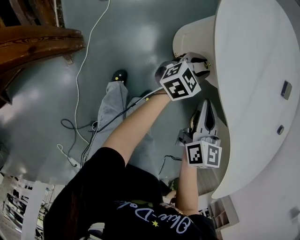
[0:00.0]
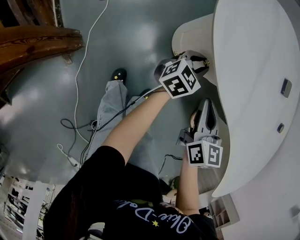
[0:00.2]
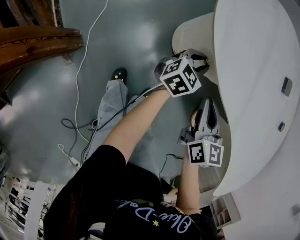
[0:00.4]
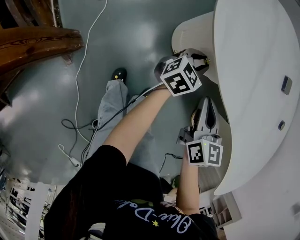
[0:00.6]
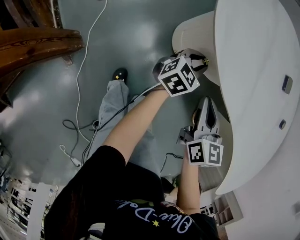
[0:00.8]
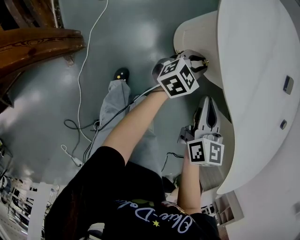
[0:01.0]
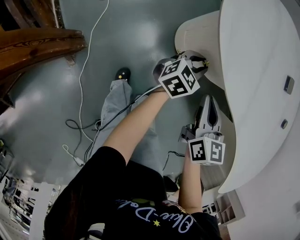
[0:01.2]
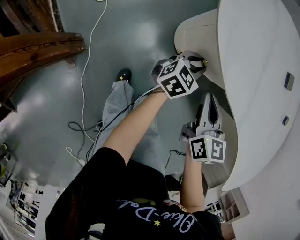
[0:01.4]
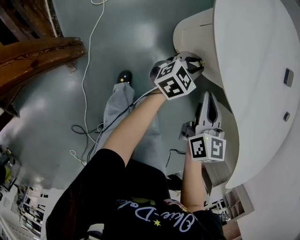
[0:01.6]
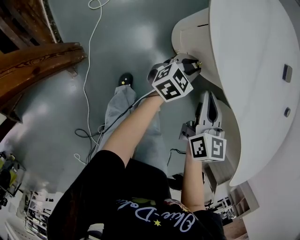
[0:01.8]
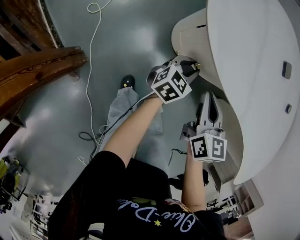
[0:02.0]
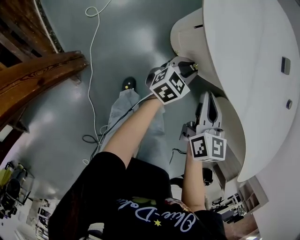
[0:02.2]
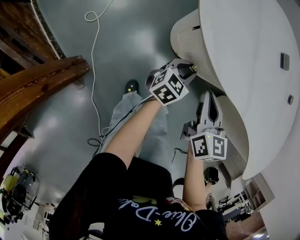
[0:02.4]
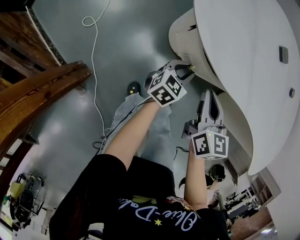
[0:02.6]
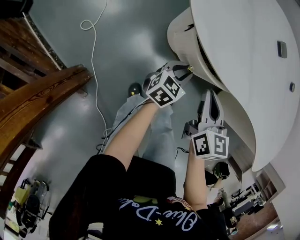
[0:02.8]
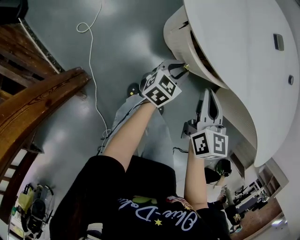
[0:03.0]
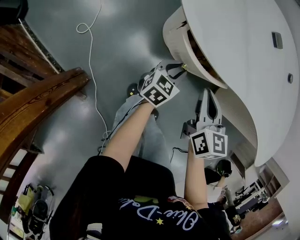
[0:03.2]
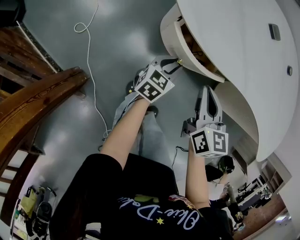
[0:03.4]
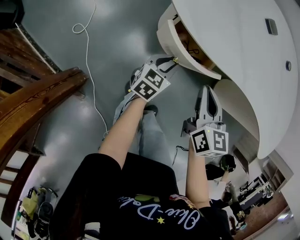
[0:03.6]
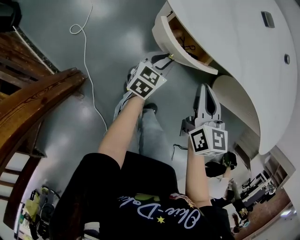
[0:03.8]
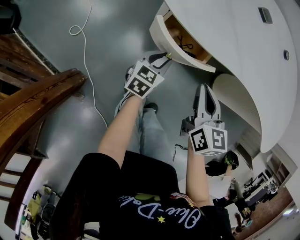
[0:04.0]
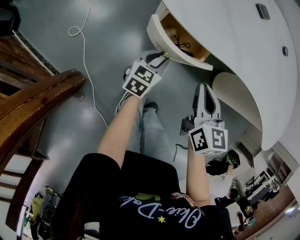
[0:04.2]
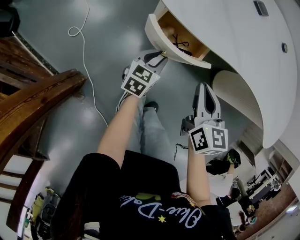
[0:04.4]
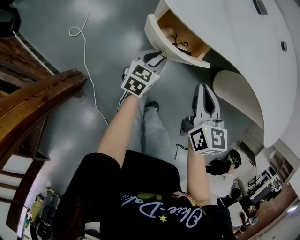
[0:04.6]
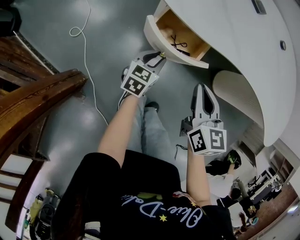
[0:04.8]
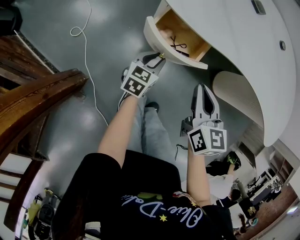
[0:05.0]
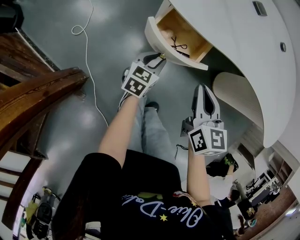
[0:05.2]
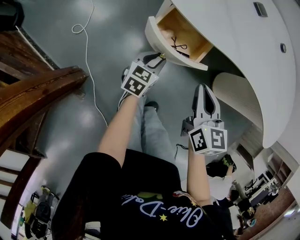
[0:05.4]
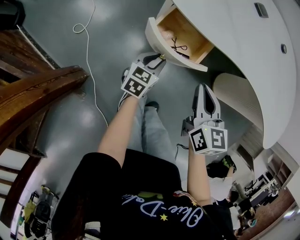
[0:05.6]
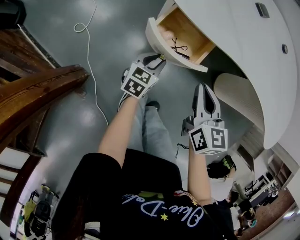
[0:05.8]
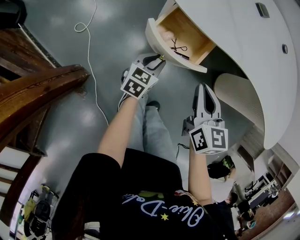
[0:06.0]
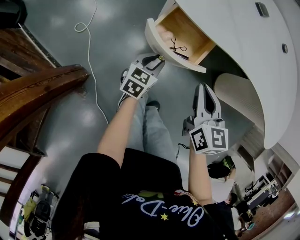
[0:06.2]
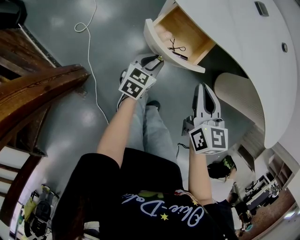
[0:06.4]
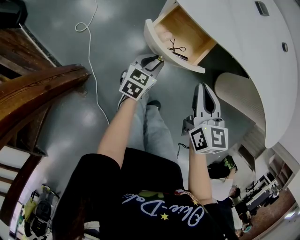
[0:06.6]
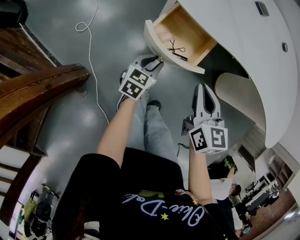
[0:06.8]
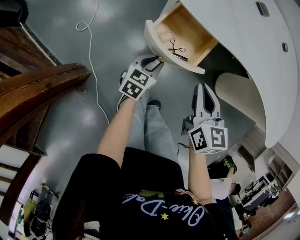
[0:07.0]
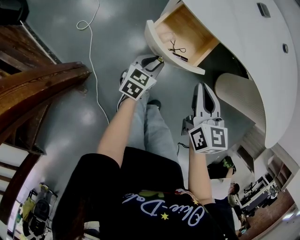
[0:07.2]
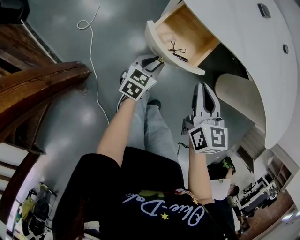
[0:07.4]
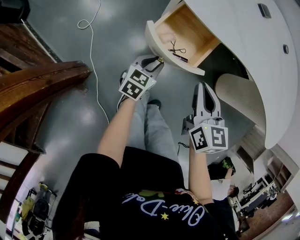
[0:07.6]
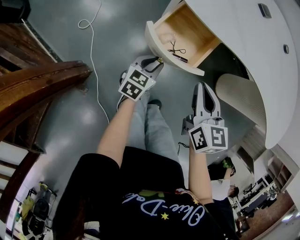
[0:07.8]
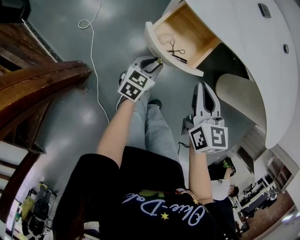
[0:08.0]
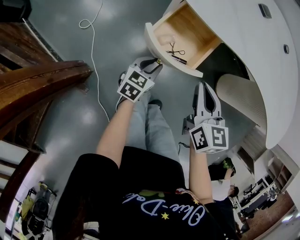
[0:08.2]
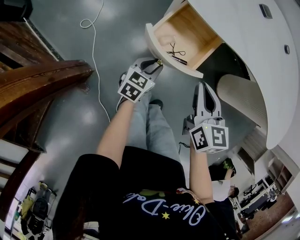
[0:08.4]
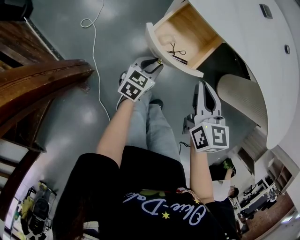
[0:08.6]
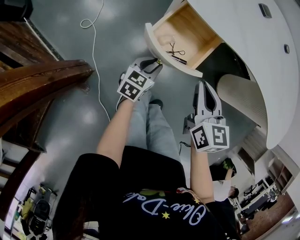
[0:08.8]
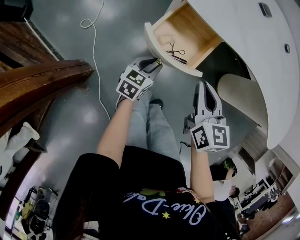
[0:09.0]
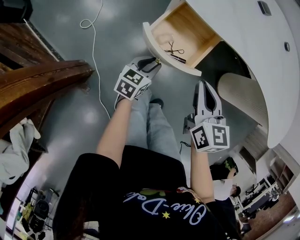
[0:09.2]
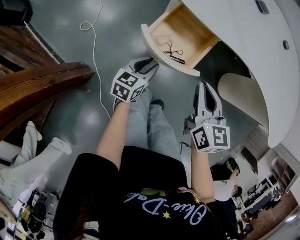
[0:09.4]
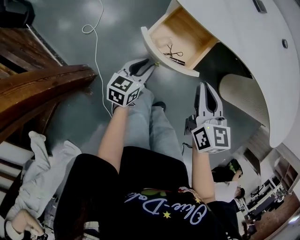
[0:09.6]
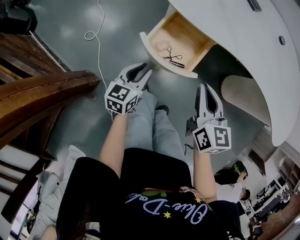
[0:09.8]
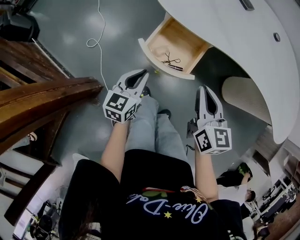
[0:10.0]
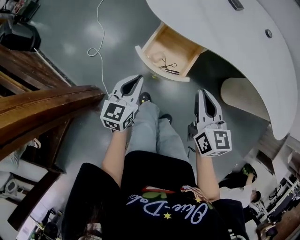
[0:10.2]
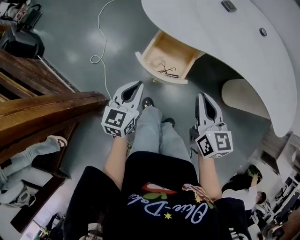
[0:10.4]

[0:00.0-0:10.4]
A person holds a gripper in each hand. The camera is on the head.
0:00.0 to 0:01.4: The grippers stay close to where they were, moving slightly.
0:01.4 to 0:03.0: The left gripper travels backward by about 5 cm.
0:03.0 to 0:04.4: The right gripper moves to the right, about 5 cm.
0:04.4 to 0:06.0: The grippers move only a little.
0:06.0 to 0:09.0: The grippers move only a little.
0:09.0 to 0:10.4: The left gripper moves upward, about 20 cm, and closes its fingers, while the right gripper heads upward, covering roughly 10 cm.

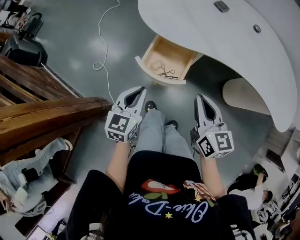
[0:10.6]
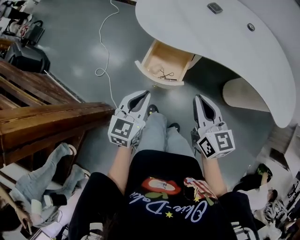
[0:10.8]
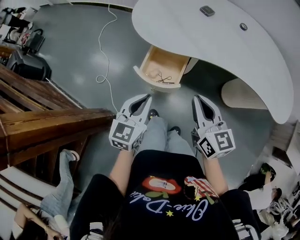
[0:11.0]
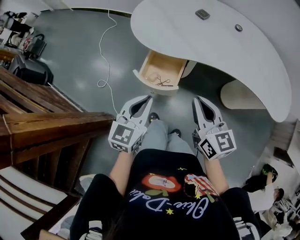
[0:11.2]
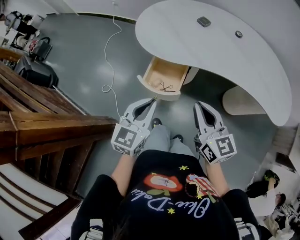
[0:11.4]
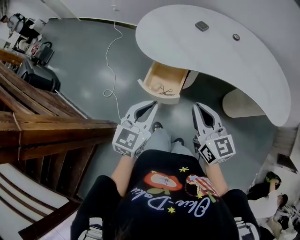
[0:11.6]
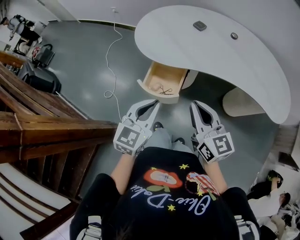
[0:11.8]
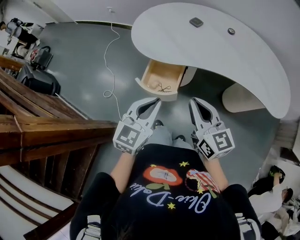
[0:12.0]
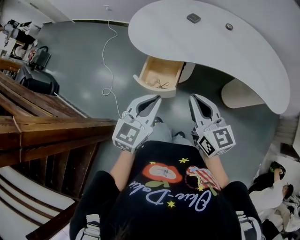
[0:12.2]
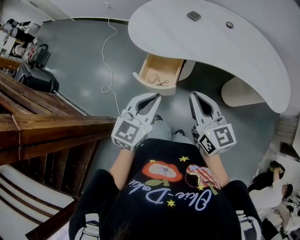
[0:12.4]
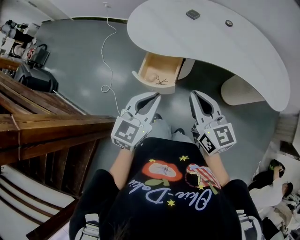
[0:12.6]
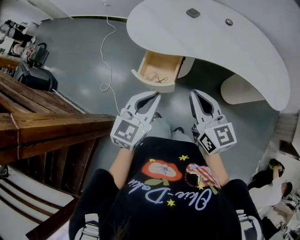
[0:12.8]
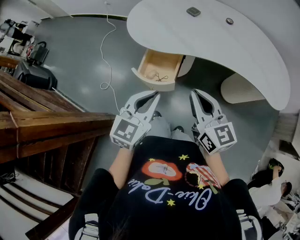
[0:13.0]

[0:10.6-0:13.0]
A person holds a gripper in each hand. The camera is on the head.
0:10.6 to 0:11.8: The left gripper goes approximately 15 cm upward and to the right; the right gripper is displaced upward by some 10 cm.
0:11.8 to 0:13.0: The grippers move only a little.

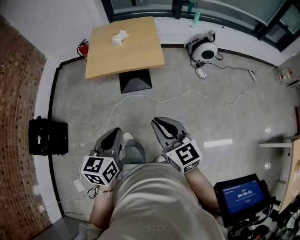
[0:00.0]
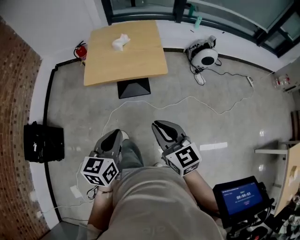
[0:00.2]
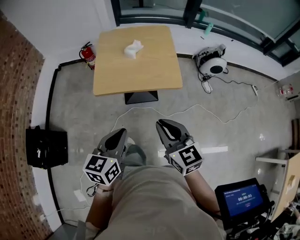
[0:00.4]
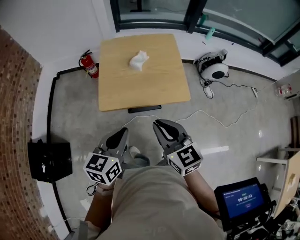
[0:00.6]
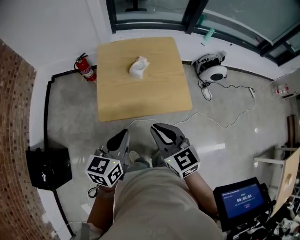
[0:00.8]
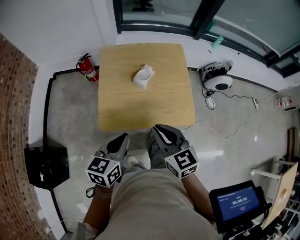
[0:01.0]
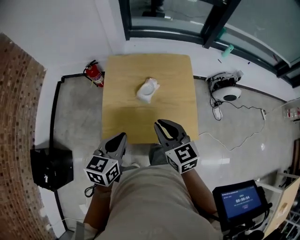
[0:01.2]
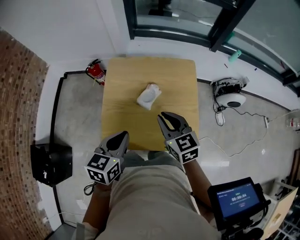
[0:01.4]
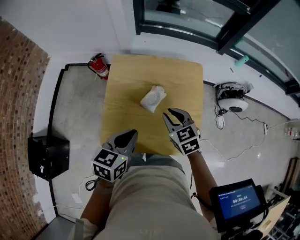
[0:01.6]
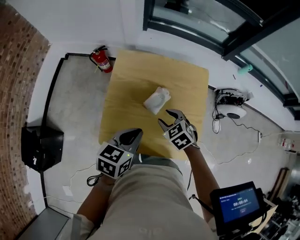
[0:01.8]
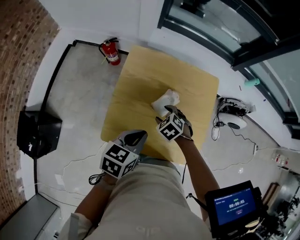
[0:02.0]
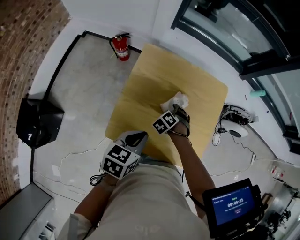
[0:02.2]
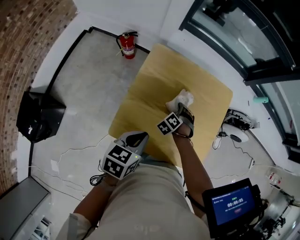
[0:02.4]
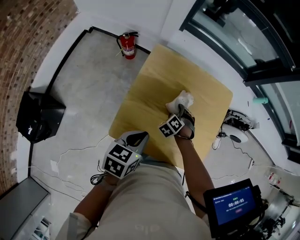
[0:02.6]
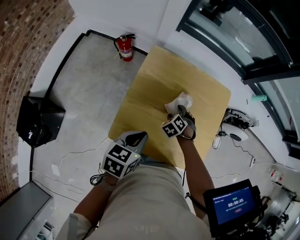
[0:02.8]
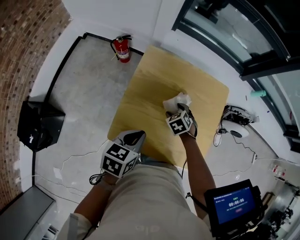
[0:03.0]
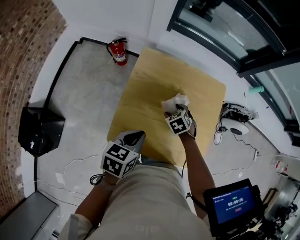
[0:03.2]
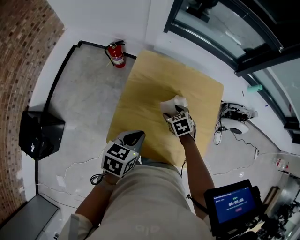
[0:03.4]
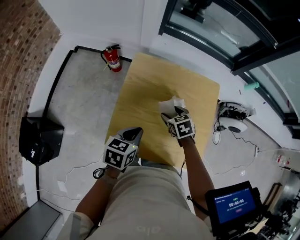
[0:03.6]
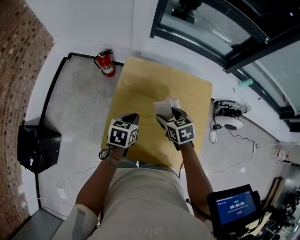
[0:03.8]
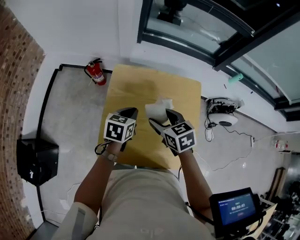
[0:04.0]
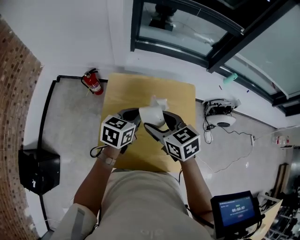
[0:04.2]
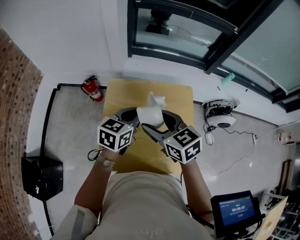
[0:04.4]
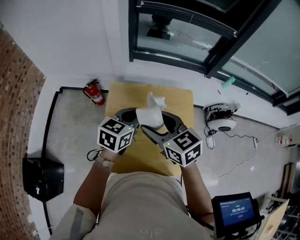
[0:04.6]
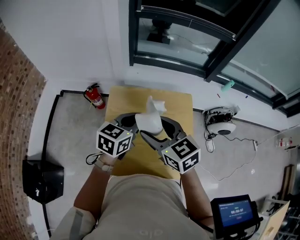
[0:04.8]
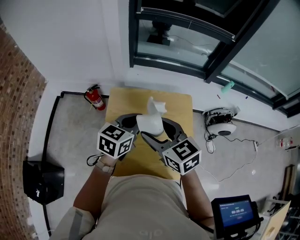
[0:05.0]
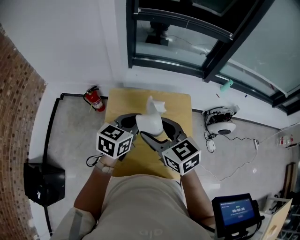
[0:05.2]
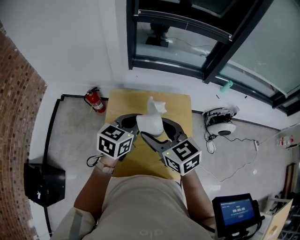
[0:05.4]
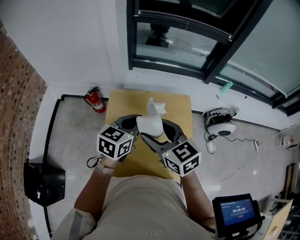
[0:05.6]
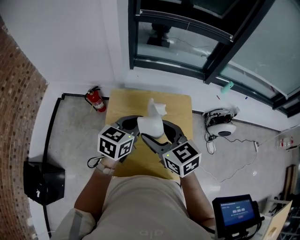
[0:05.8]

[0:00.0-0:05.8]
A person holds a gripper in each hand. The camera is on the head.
0:00.0 to 0:01.4: The two grippers travel together, forward, approximately 60 cm.
0:01.4 to 0:02.8: The left gripper changes place by some 10 cm. The right gripper is displaced downward by some 25 cm, tilts its fingers roughly 40 degrees downward, and opens up.
0:02.8 to 0:04.4: The right gripper shifts about 35 cm upward, and angles its fingers upward, by some 40 degrees; the left gripper shifts roughly 20 cm forward, to the right and upward, and changes its angle by some 30 degrees.
0:04.4 to 0:05.8: The right gripper ends up some 5 cm from where it was. Meanwhile the left gripper moves roughly 5 cm.

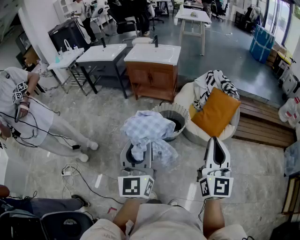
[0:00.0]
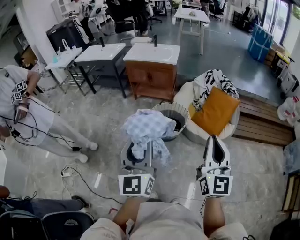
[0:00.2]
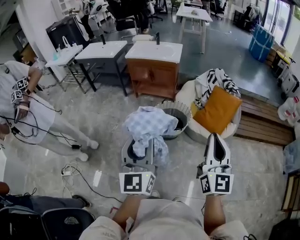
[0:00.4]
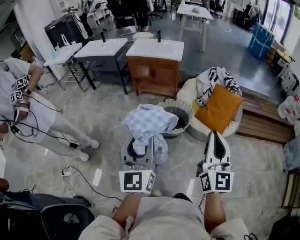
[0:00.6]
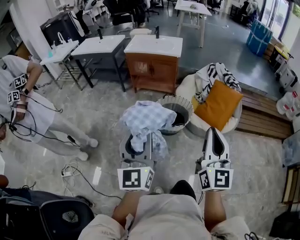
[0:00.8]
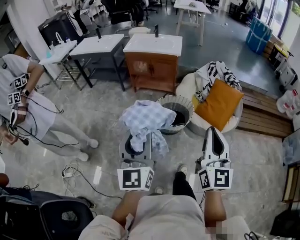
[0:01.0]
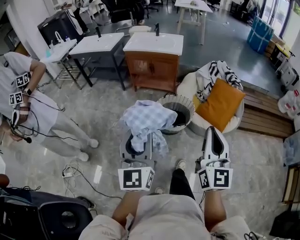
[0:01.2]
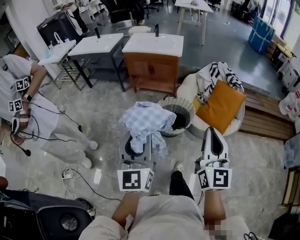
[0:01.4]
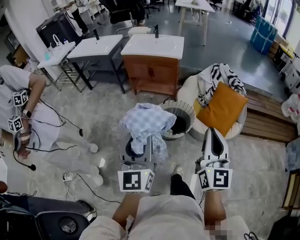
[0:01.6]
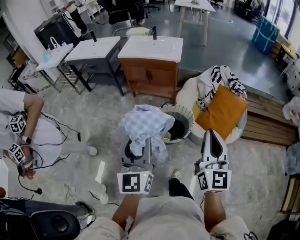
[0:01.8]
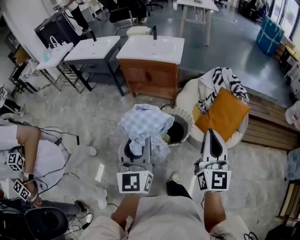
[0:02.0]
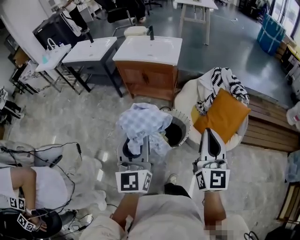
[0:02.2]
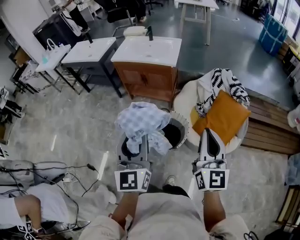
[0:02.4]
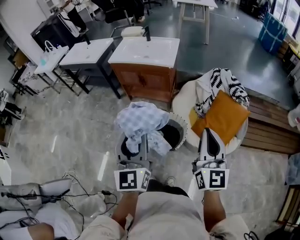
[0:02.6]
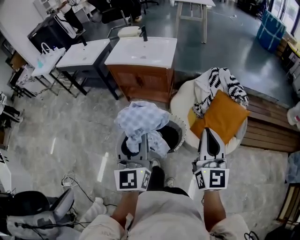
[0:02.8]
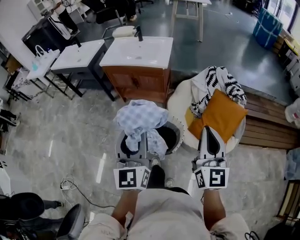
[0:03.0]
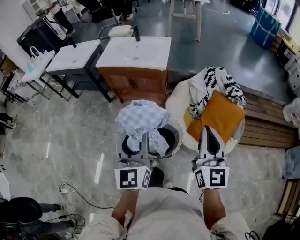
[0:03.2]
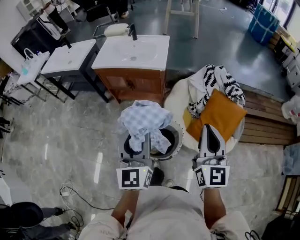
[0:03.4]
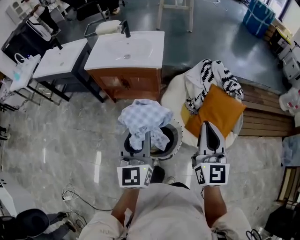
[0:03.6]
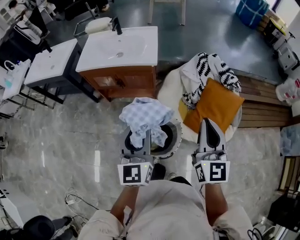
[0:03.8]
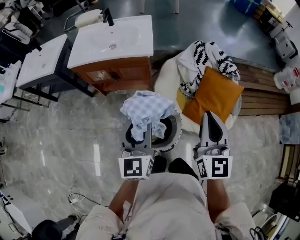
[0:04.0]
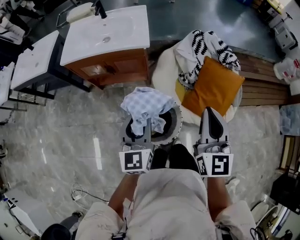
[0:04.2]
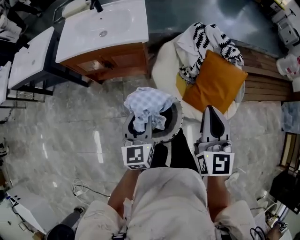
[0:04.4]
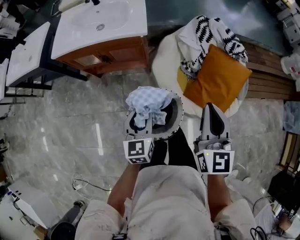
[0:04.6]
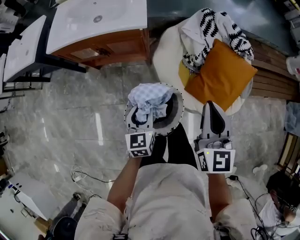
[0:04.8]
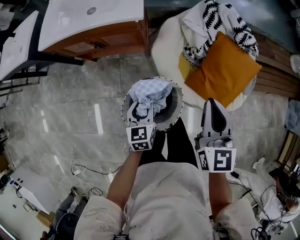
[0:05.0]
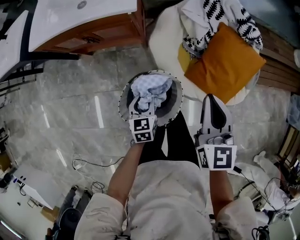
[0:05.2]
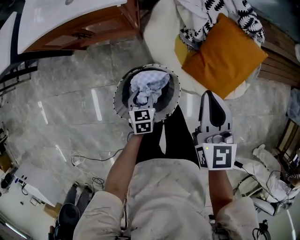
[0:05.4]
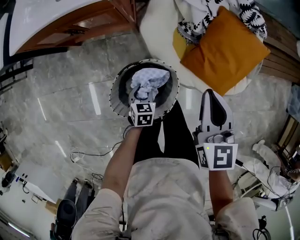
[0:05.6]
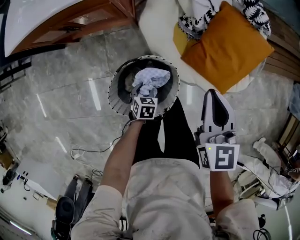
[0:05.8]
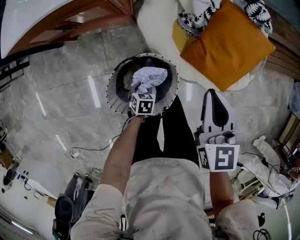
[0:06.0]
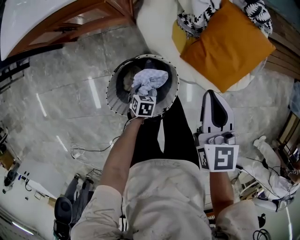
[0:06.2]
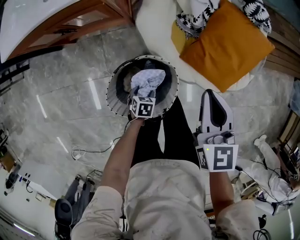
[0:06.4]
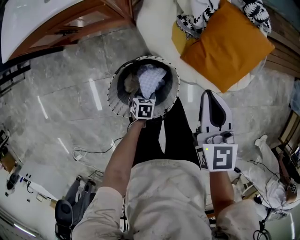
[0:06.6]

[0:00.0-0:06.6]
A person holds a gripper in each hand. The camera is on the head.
0:00.0 to 0:01.6: The two grippers go approximately 20 cm forward and to the left.
0:01.6 to 0:03.2: Both grippers move forward and to the right, about 35 cm.
0:03.2 to 0:05.0: The right gripper moves downward and forward, roughly 30 cm, and swivels roughly 20 degrees, while the left gripper heads downward and forward, covering about 40 cm, and tips its fingers downward by roughly 40 degrees.
0:05.0 to 0:06.6: The left gripper travels downward by roughly 30 cm, points its fingers approximately 40 degrees further downward, and opens. The right gripper is displaced downward by some 15 cm.
